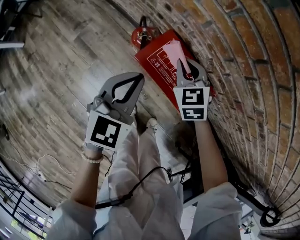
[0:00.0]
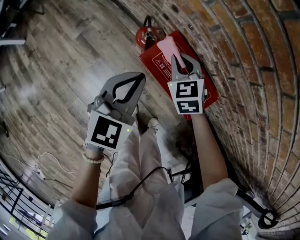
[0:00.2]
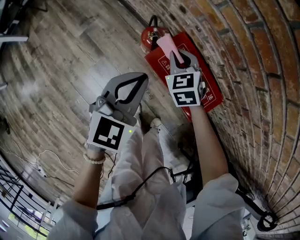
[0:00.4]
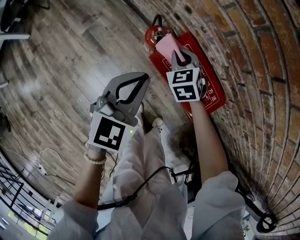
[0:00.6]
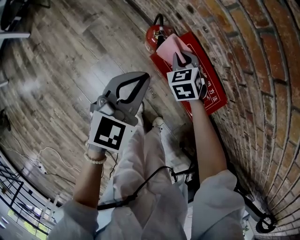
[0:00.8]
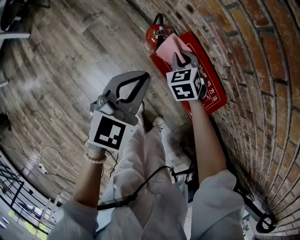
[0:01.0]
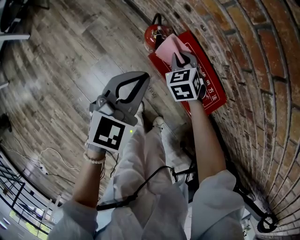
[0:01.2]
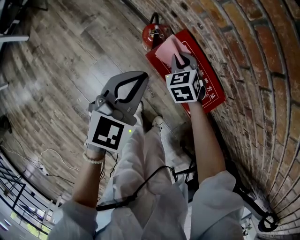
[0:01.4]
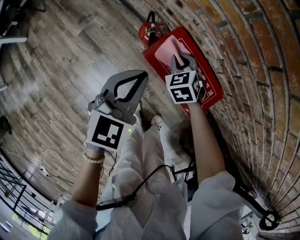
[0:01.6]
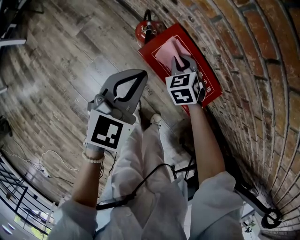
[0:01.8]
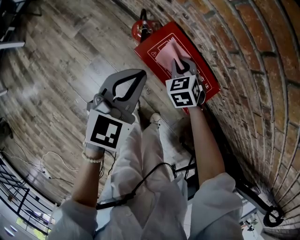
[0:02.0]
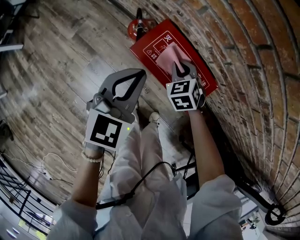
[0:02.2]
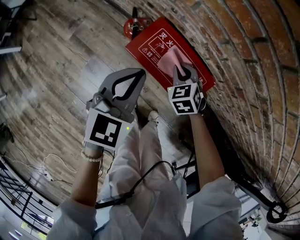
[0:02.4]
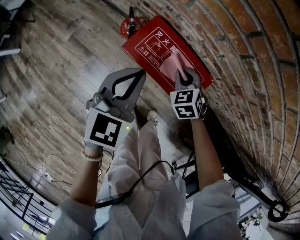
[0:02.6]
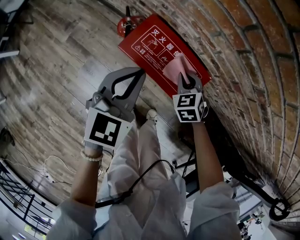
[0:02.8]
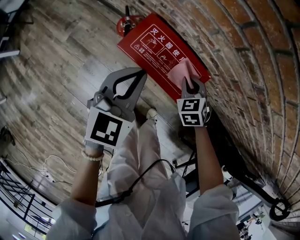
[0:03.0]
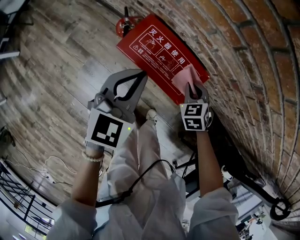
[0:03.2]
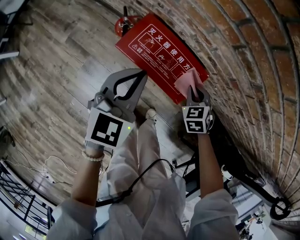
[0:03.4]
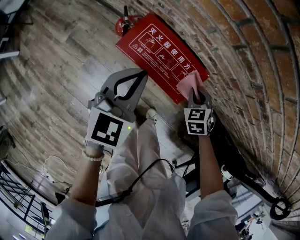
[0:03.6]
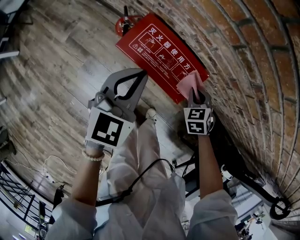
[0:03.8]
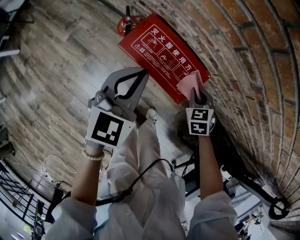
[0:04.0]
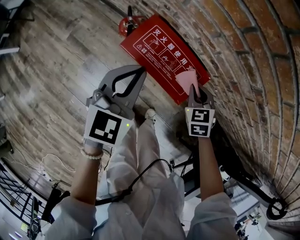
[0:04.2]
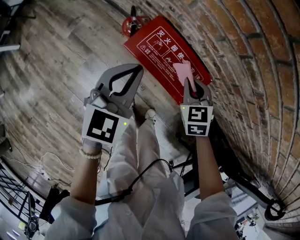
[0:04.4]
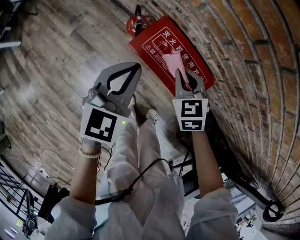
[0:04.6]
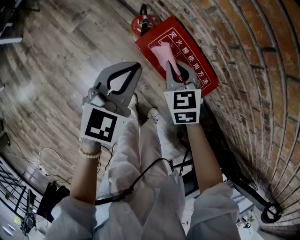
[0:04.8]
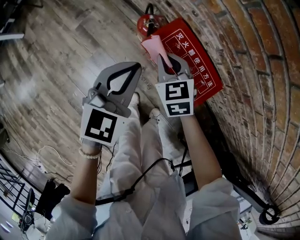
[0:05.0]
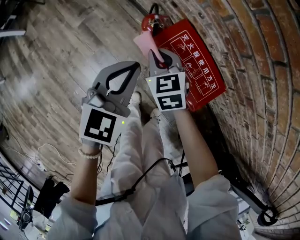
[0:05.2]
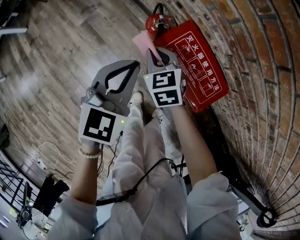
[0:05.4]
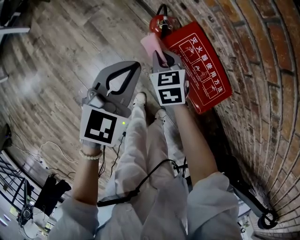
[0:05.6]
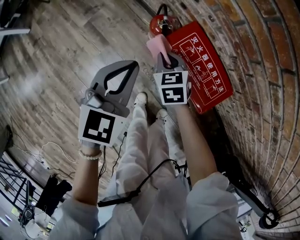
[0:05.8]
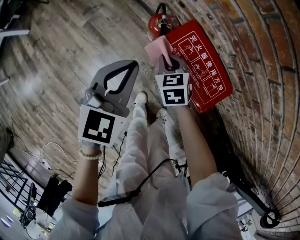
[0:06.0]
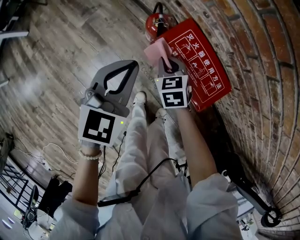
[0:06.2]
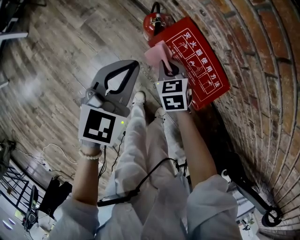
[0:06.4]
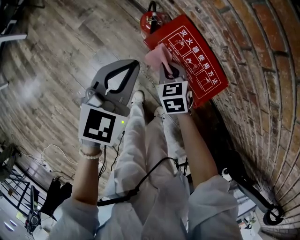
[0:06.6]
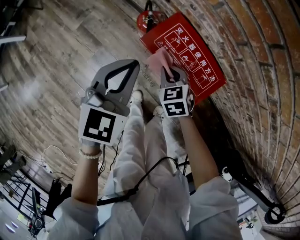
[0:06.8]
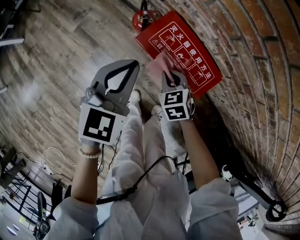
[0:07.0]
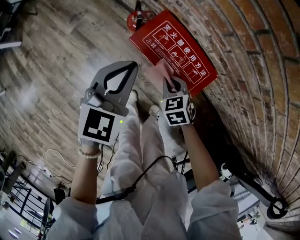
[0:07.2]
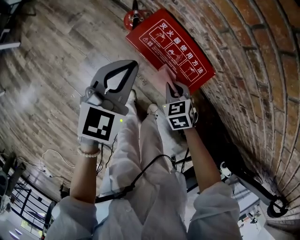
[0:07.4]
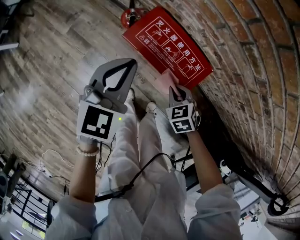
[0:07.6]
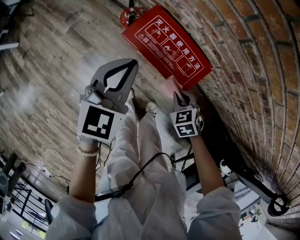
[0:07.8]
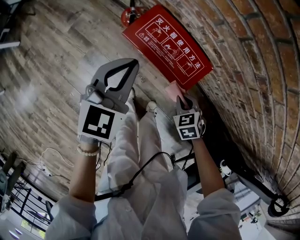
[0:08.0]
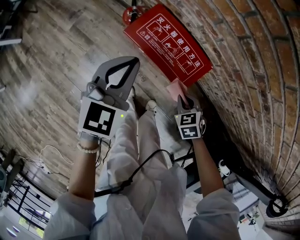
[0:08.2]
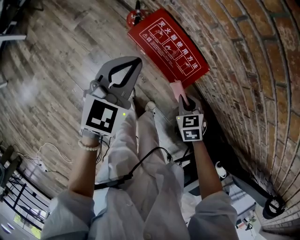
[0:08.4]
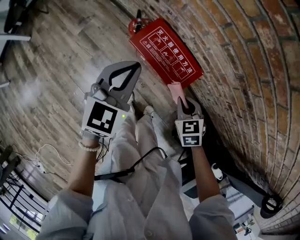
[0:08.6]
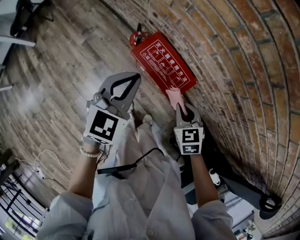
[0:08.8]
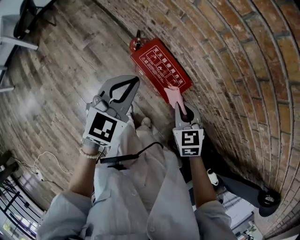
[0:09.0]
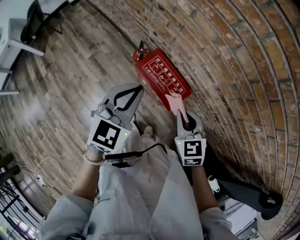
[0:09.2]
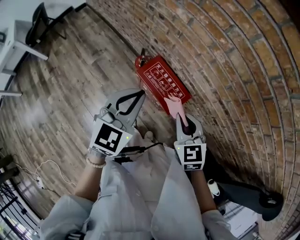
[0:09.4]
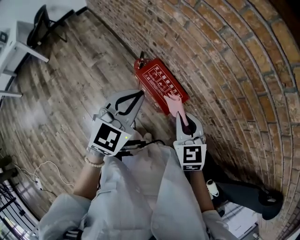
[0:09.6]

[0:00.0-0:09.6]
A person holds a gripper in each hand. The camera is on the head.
0:00.0 to 0:01.6: The right gripper is displaced downward by roughly 10 cm.
0:01.6 to 0:03.2: The right gripper shifts roughly 25 cm to the right and backward; the left gripper heads to the right, covering approximately 10 cm.
0:03.2 to 0:04.8: The right gripper shifts some 20 cm to the left and upward, and rotates approximately 20 degrees. Meanwhile the left gripper heads to the left, covering some 10 cm.
0:04.8 to 0:06.4: The right gripper heads downward and to the left, covering roughly 10 cm.
0:06.4 to 0:08.0: The right gripper moves to the right and backward, some 25 cm; the left gripper heads to the right, covering approximately 10 cm.
0:08.0 to 0:09.6: The left gripper moves upward, some 25 cm; the right gripper travels upward by some 40 cm, and tips its fingers upward by approximately 40 degrees.

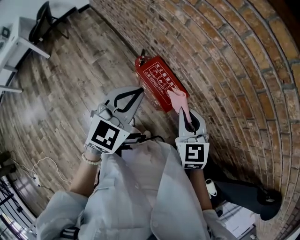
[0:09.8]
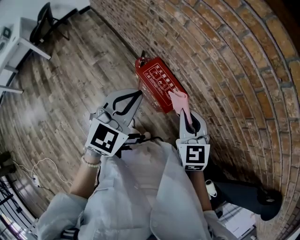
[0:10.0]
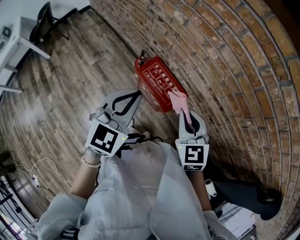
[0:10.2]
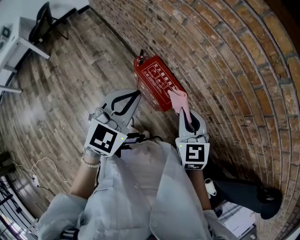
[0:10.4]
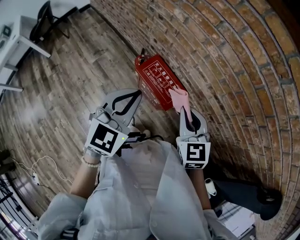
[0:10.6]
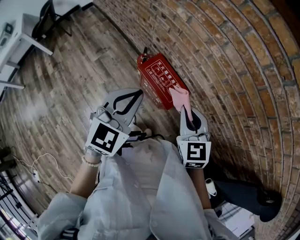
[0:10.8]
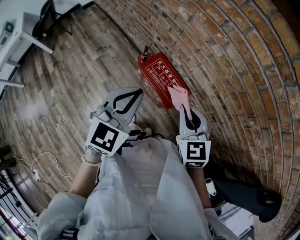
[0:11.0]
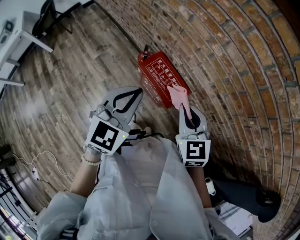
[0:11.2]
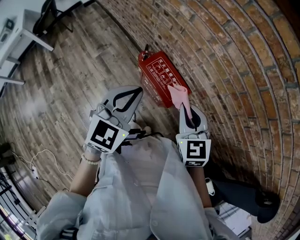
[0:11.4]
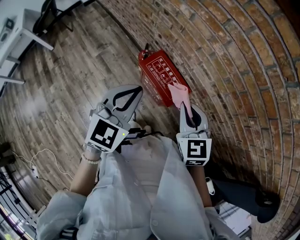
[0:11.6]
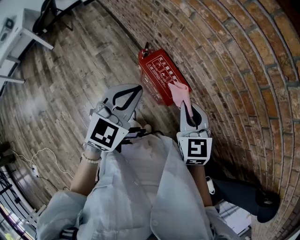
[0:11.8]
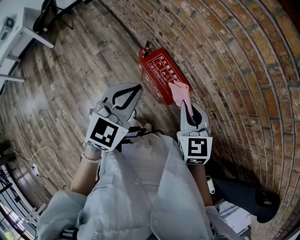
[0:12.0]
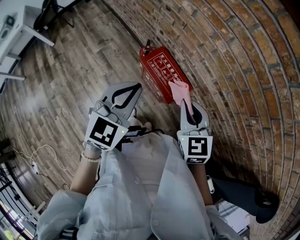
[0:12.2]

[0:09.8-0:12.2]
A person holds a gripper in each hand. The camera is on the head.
0:09.8 to 0:12.2: There are only small adjustments of the grippers.

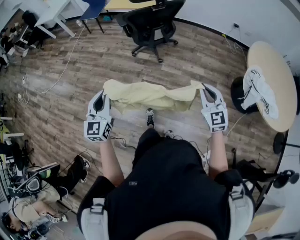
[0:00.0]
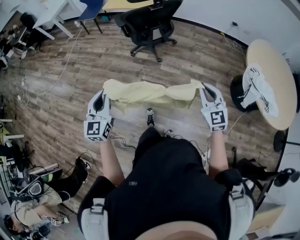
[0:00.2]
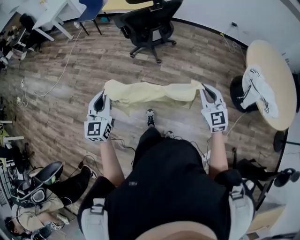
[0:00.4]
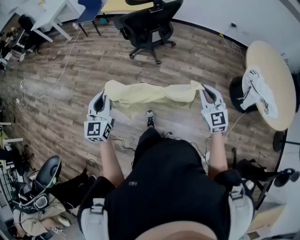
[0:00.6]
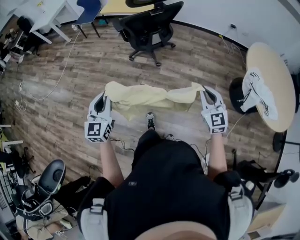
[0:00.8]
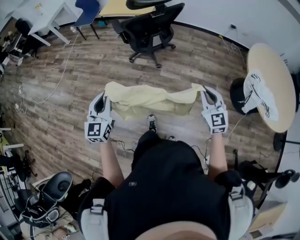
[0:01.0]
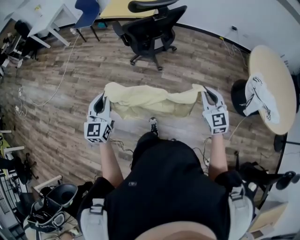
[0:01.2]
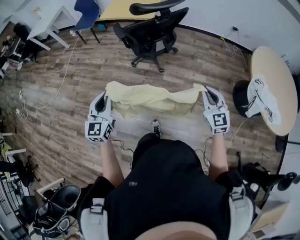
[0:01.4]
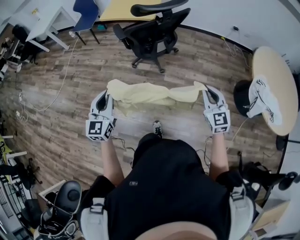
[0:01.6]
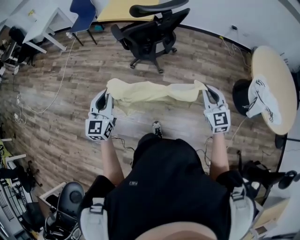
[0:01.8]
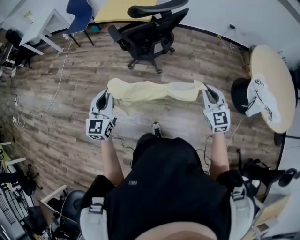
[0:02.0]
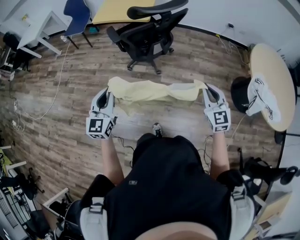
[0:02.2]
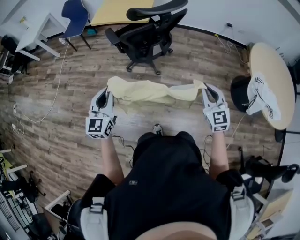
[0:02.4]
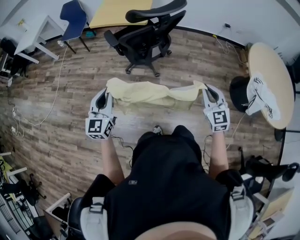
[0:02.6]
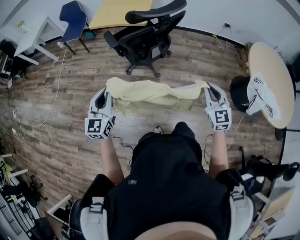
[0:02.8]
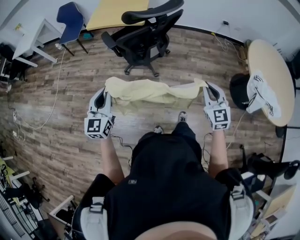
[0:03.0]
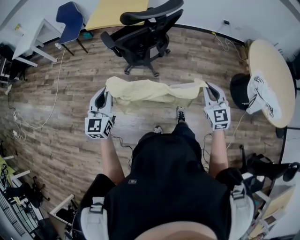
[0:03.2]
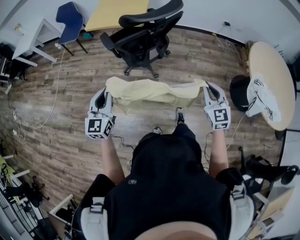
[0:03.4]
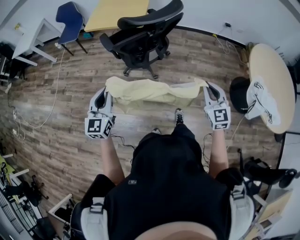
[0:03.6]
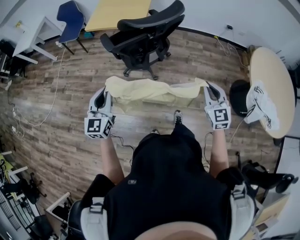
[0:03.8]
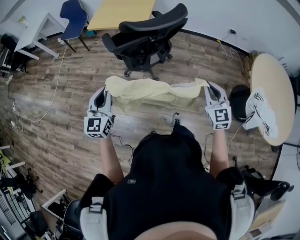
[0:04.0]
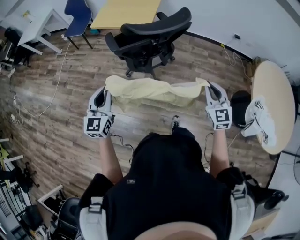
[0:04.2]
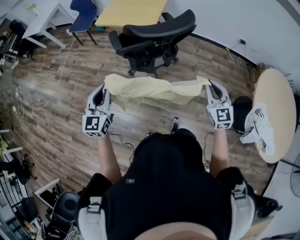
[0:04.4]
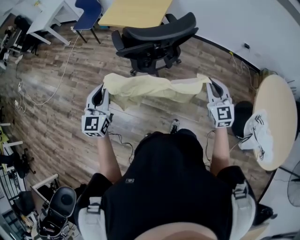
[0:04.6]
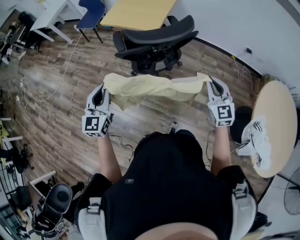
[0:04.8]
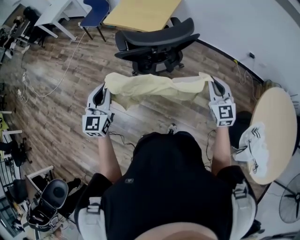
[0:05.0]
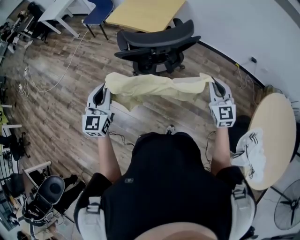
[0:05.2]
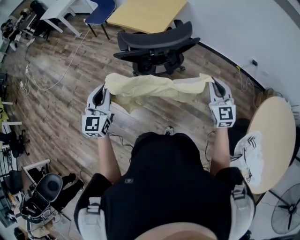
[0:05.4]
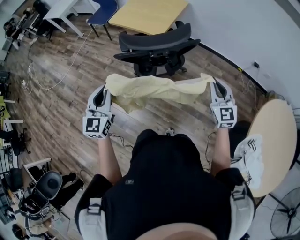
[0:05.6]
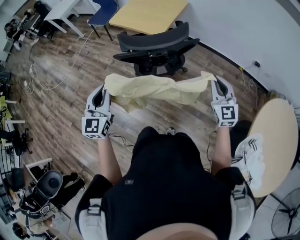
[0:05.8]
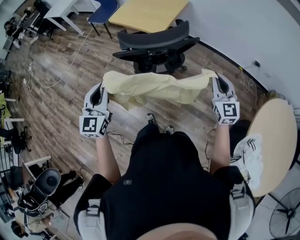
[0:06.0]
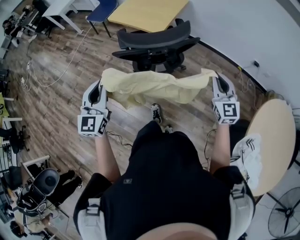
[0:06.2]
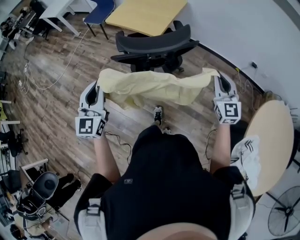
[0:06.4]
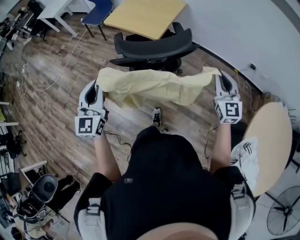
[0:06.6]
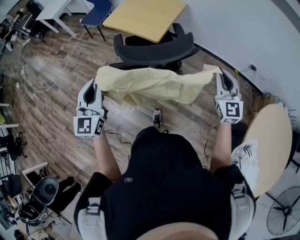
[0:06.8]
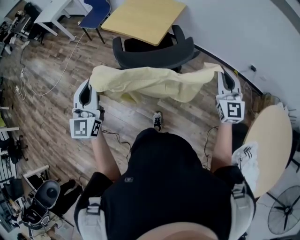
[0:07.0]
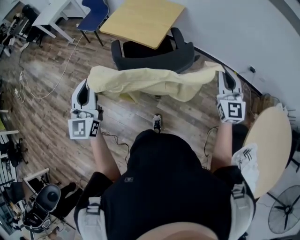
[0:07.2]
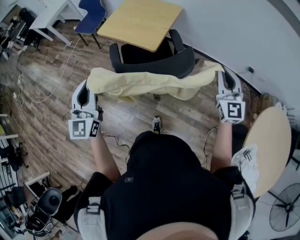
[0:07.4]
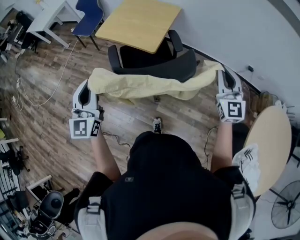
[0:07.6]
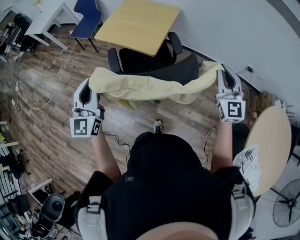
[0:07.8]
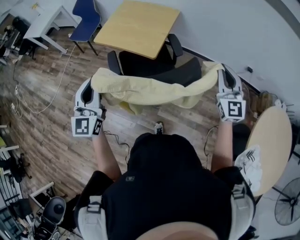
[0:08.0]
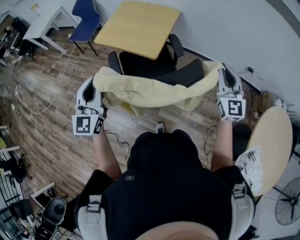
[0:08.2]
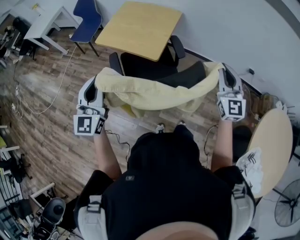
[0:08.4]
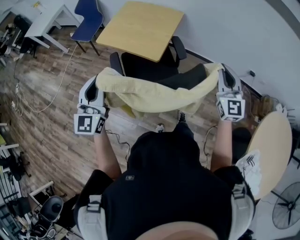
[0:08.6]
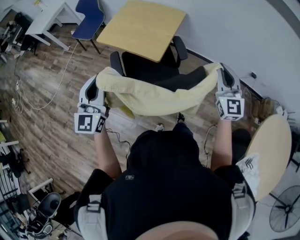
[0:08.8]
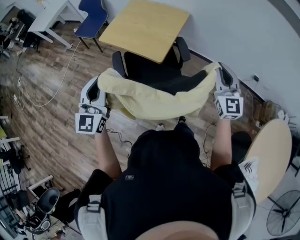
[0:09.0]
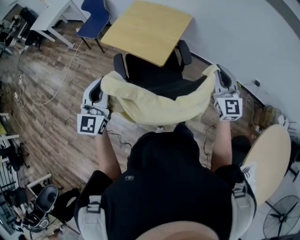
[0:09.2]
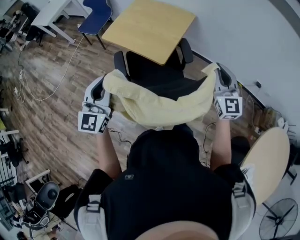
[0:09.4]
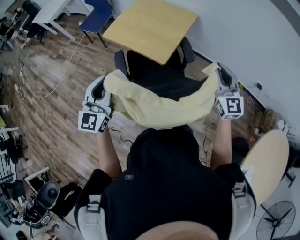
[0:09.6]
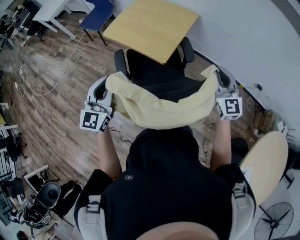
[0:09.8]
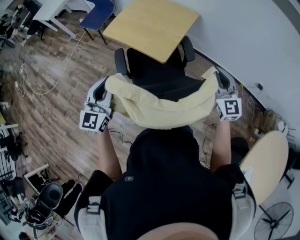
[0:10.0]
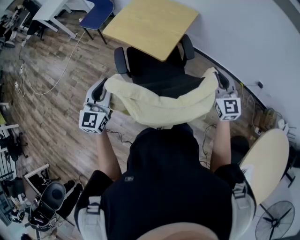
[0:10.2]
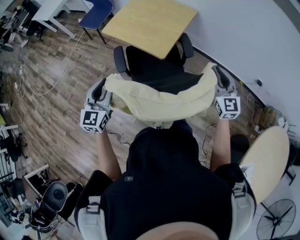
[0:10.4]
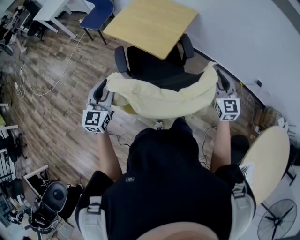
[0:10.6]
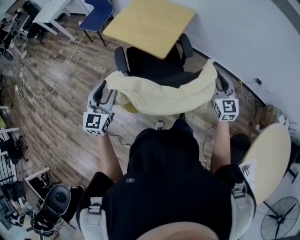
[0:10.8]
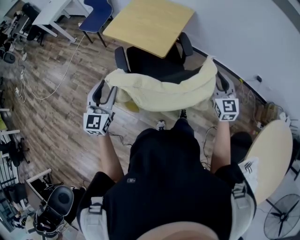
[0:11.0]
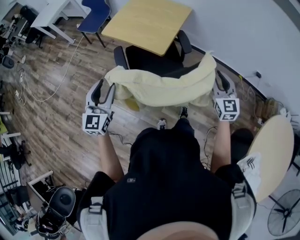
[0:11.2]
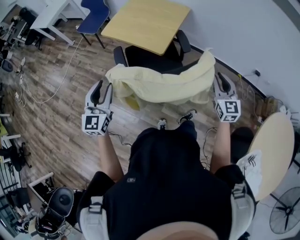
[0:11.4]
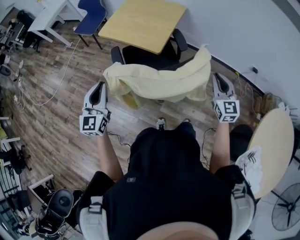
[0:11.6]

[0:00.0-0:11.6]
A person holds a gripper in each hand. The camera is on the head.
0:00.0 to 0:01.4: Both grippers move forward, about 15 cm.
0:01.4 to 0:02.8: The left gripper moves forward, roughly 15 cm. The right gripper is displaced forward by roughly 10 cm.
0:02.8 to 0:04.4: The right gripper shifts some 20 cm forward, while the left gripper heads forward and to the right, covering roughly 15 cm.
0:04.4 to 0:05.8: The right gripper heads forward and to the right, covering roughly 15 cm, while the left gripper is displaced to the right by about 10 cm.
0:05.8 to 0:07.2: Both grippers move forward and upward, about 15 cm.
0:07.2 to 0:08.8: The grippers both shift forward by some 15 cm.
0:08.8 to 0:10.2: The right gripper goes approximately 10 cm downward and forward; the left gripper heads downward, covering approximately 10 cm.
0:10.2 to 0:11.6: The right gripper shifts some 10 cm backward. The left gripper goes roughly 10 cm backward, and opens and closes again.
